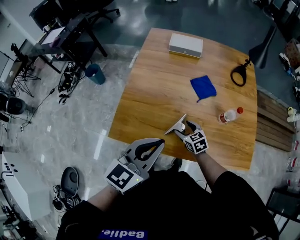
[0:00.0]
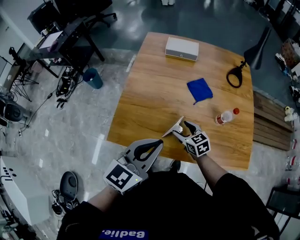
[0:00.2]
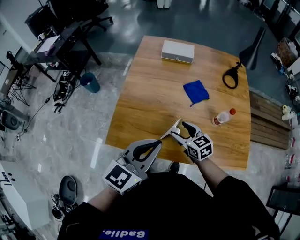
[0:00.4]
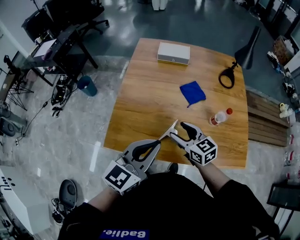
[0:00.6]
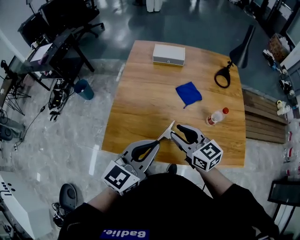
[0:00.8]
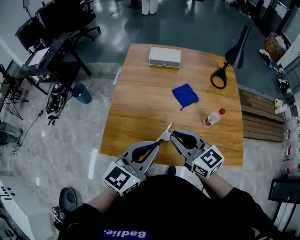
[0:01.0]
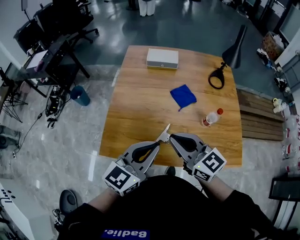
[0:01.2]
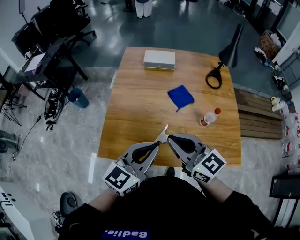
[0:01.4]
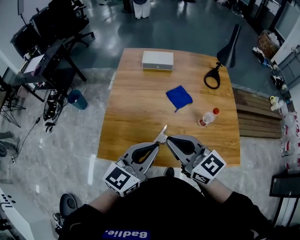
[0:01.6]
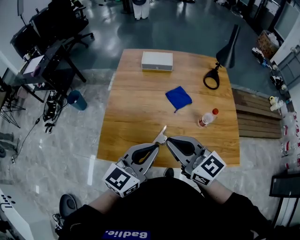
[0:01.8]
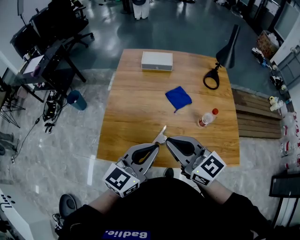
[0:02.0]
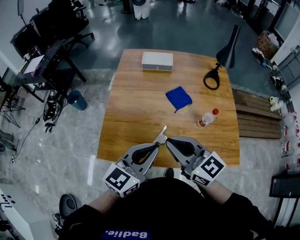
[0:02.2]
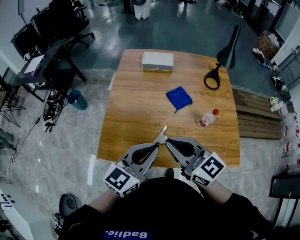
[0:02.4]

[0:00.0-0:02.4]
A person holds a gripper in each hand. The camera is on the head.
0:00.0 to 0:01.2: The right gripper shifts some 30 cm upward, points its fingers approximately 30 degrees further upward, and closes up.
0:01.2 to 0:02.4: The grippers move only a little.

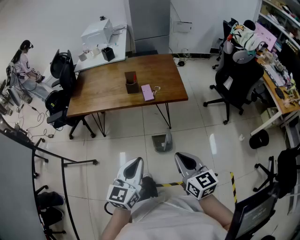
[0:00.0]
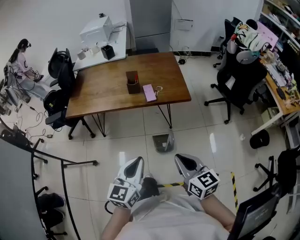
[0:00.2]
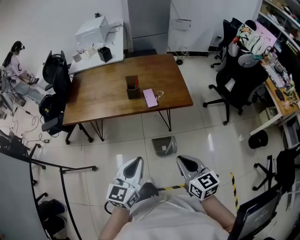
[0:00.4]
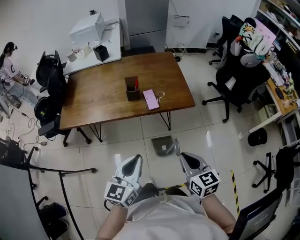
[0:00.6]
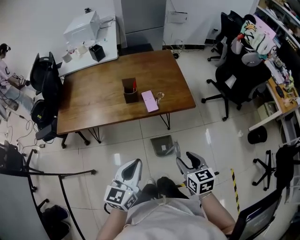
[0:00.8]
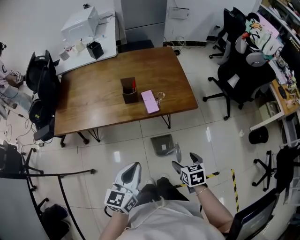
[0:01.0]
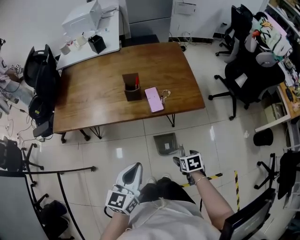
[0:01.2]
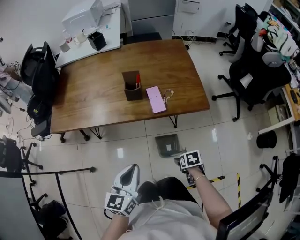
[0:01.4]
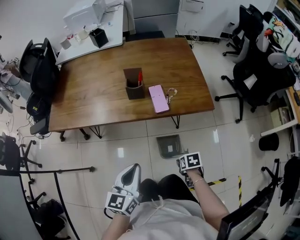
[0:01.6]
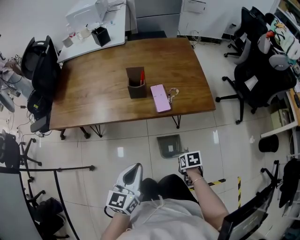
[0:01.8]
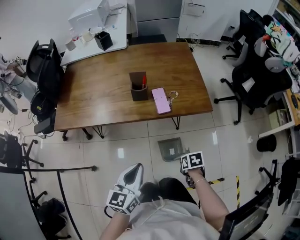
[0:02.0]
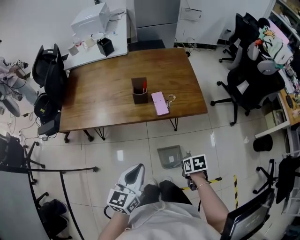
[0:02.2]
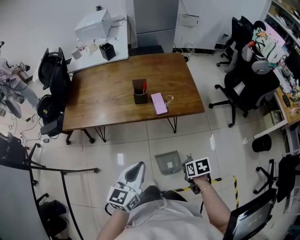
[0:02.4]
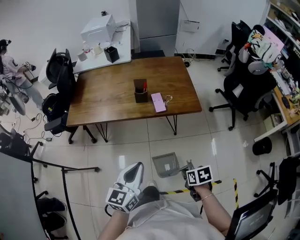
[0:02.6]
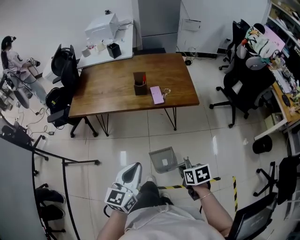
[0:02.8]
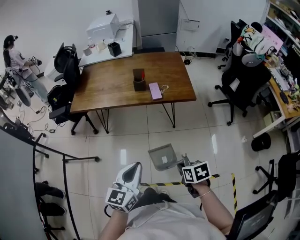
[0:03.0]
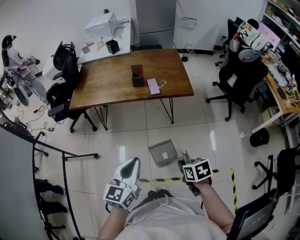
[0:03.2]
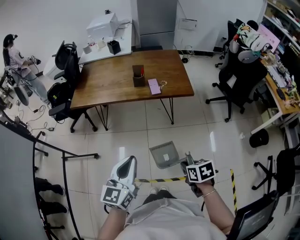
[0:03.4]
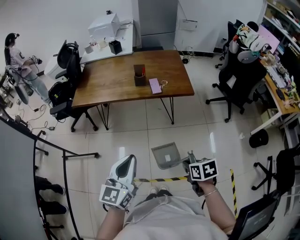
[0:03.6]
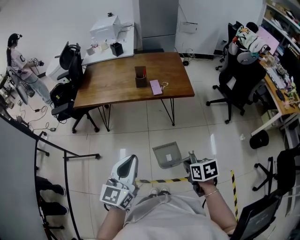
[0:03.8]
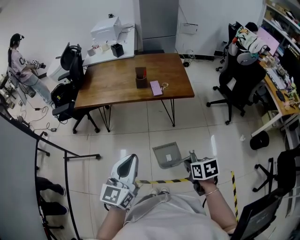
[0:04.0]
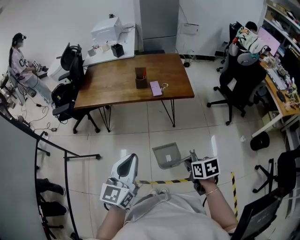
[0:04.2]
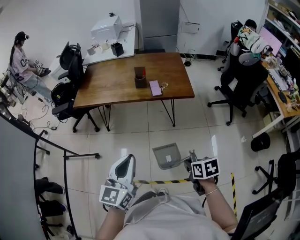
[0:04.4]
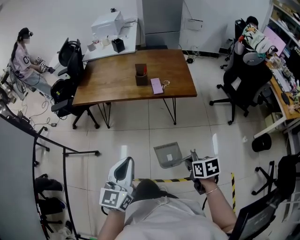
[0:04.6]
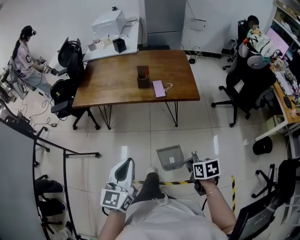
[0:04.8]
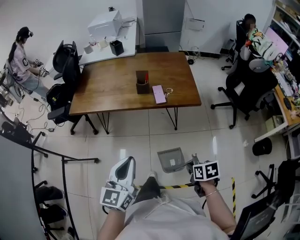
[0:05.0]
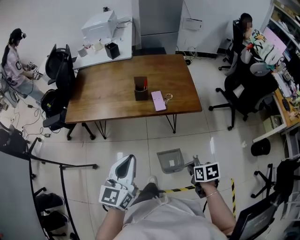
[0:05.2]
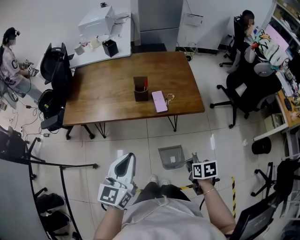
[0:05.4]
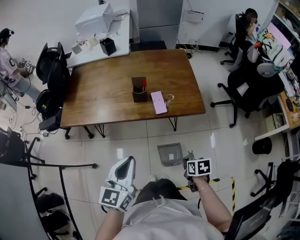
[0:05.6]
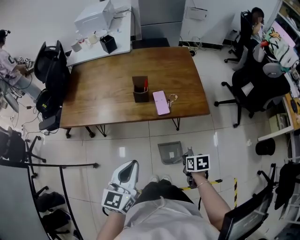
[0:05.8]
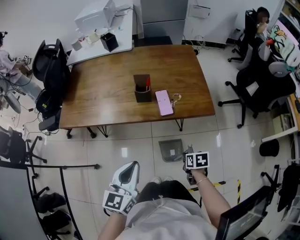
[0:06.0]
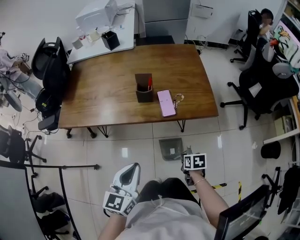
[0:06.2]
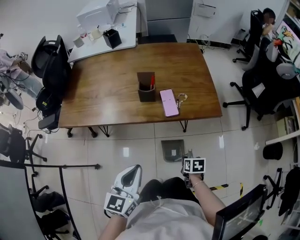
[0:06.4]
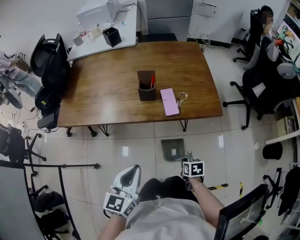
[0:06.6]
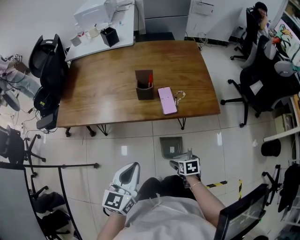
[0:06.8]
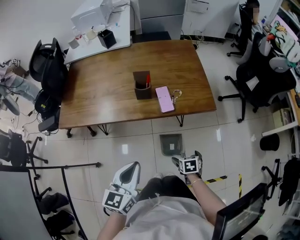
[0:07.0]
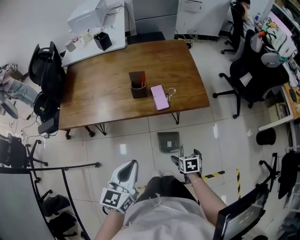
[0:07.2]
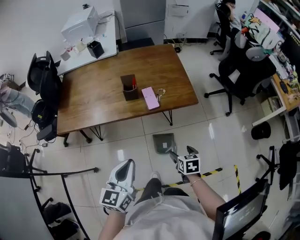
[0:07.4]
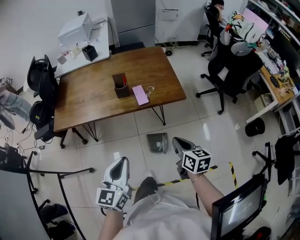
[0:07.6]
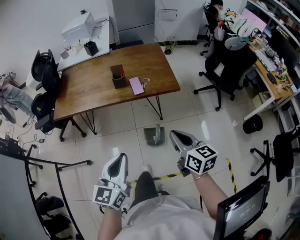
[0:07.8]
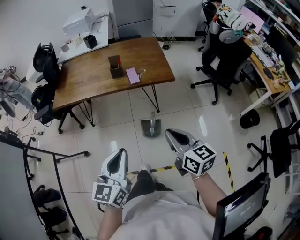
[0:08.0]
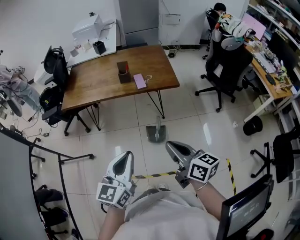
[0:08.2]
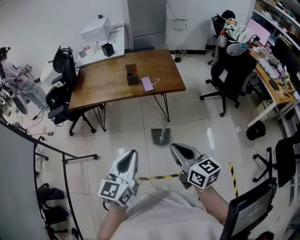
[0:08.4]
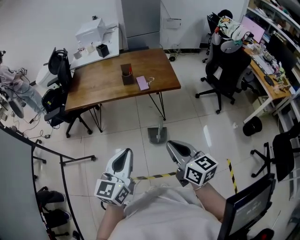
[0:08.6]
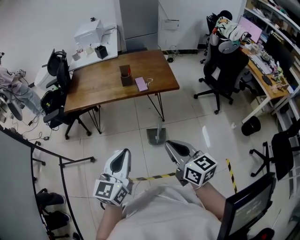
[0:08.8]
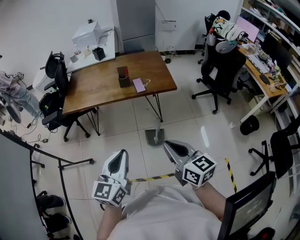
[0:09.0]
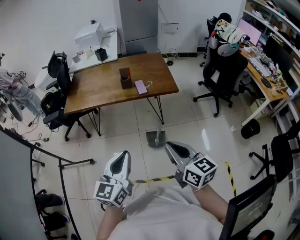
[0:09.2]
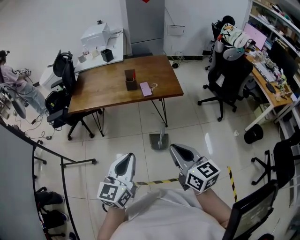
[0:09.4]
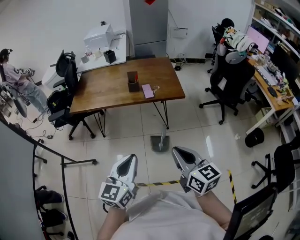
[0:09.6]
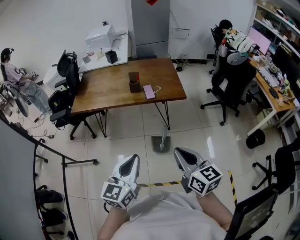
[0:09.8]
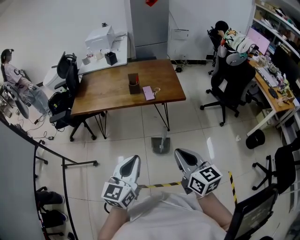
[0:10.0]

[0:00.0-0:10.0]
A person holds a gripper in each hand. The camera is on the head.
0:00.0 to 0:01.4: The right gripper shifts approximately 35 cm downward, tilts its fingers some 60 degrees downward, and opens its fingers. Meanwhile the left gripper moves roughly 25 cm.
0:01.4 to 0:02.8: The right gripper is displaced upward by about 20 cm, and closes its fingers; the left gripper moves about 20 cm.
0:02.8 to 0:04.2: Both grippers travel together backward and upward, roughly 10 cm.
0:04.2 to 0:05.8: The two grippers go some 30 cm forward and downward.
0:05.8 to 0:07.2: The right gripper opens its fingers, while the left gripper goes downward and returns, about 10 cm each way.
0:07.2 to 0:08.6: The right gripper moves upward and backward, about 40 cm, tilts its fingers about 50 degrees upward, and closes its fingers, while the left gripper goes approximately 30 cm backward and upward.
0:08.6 to 0:10.0: The grippers stay close to where they were, moving slightly.

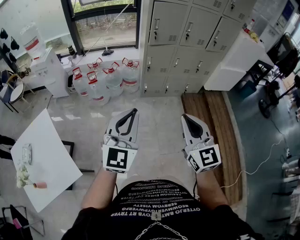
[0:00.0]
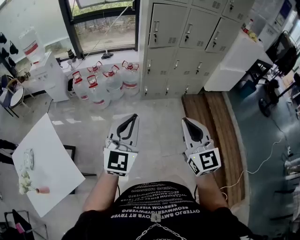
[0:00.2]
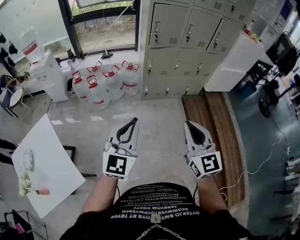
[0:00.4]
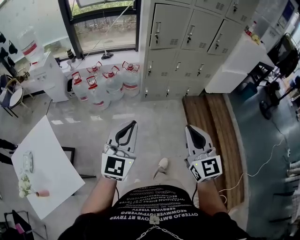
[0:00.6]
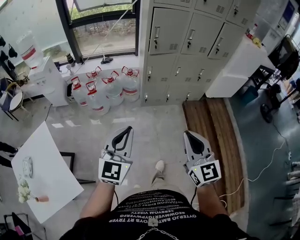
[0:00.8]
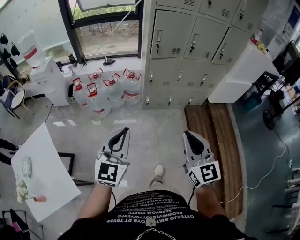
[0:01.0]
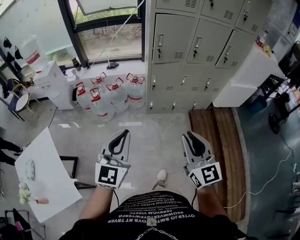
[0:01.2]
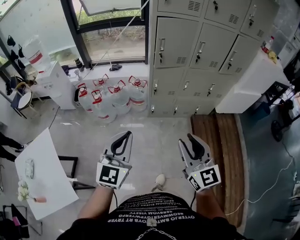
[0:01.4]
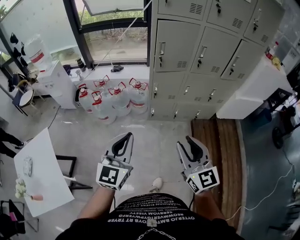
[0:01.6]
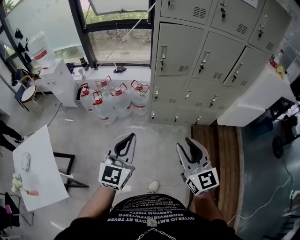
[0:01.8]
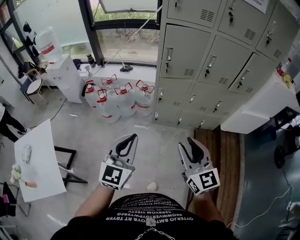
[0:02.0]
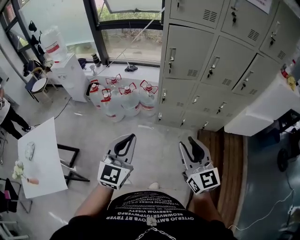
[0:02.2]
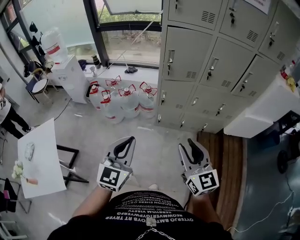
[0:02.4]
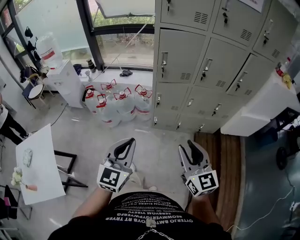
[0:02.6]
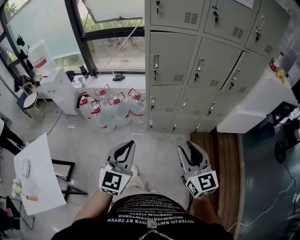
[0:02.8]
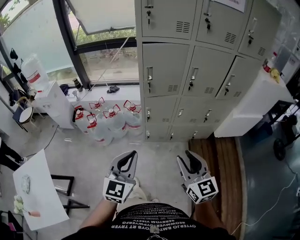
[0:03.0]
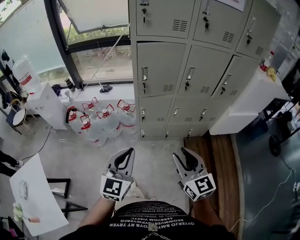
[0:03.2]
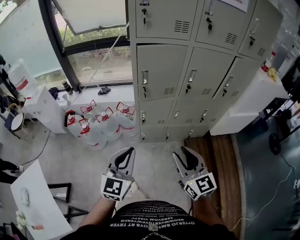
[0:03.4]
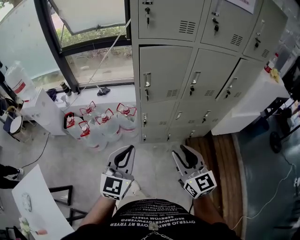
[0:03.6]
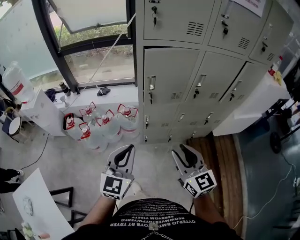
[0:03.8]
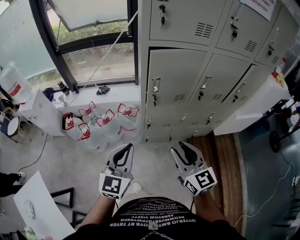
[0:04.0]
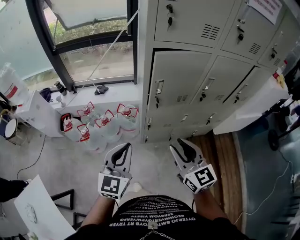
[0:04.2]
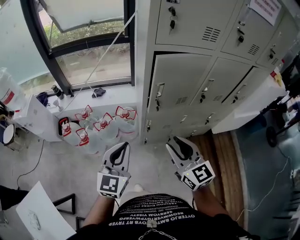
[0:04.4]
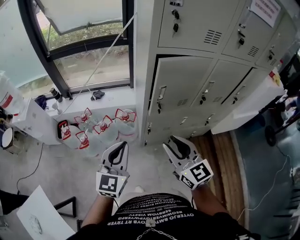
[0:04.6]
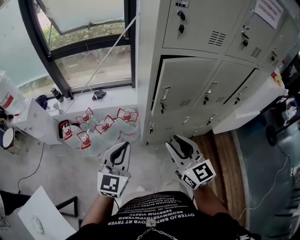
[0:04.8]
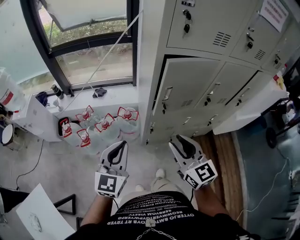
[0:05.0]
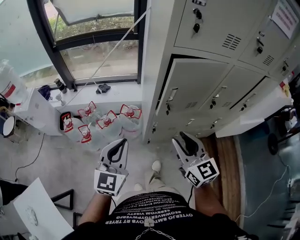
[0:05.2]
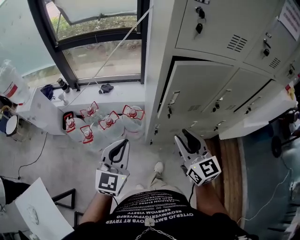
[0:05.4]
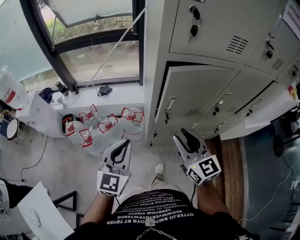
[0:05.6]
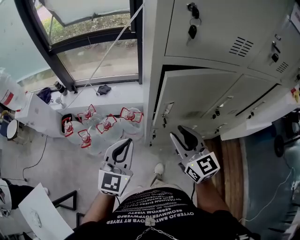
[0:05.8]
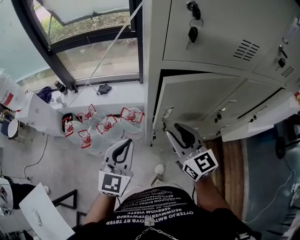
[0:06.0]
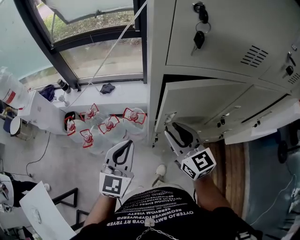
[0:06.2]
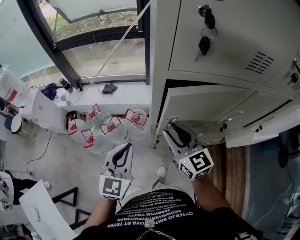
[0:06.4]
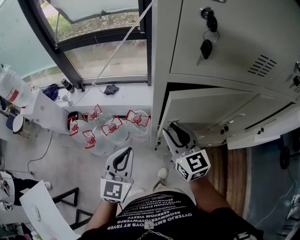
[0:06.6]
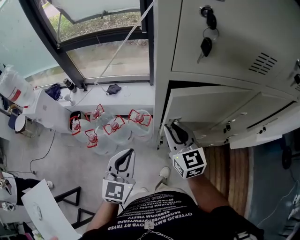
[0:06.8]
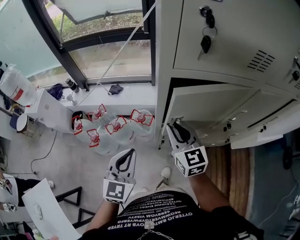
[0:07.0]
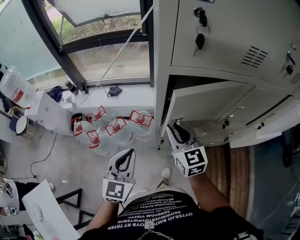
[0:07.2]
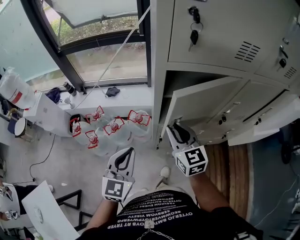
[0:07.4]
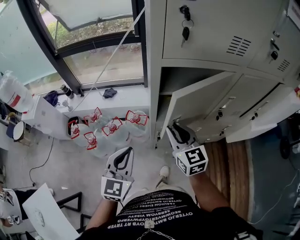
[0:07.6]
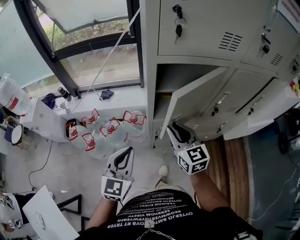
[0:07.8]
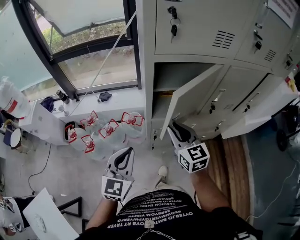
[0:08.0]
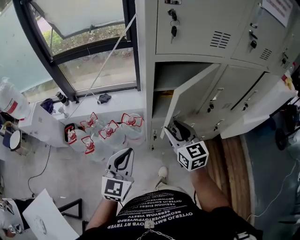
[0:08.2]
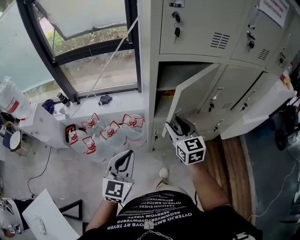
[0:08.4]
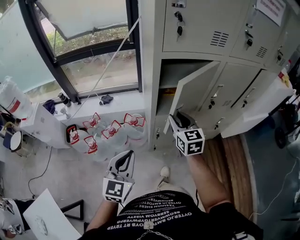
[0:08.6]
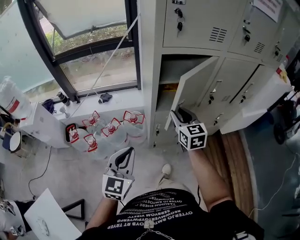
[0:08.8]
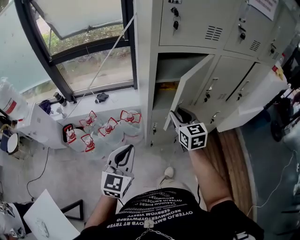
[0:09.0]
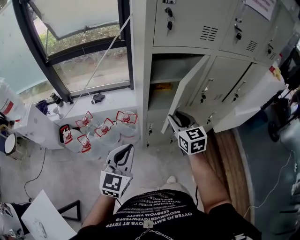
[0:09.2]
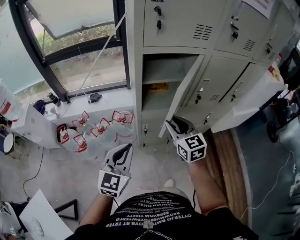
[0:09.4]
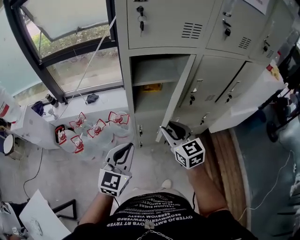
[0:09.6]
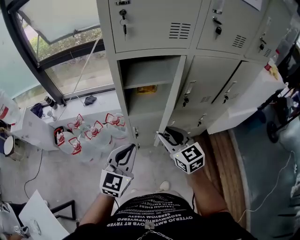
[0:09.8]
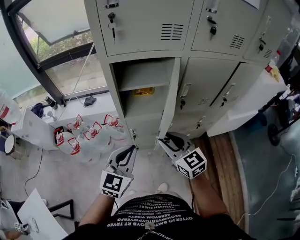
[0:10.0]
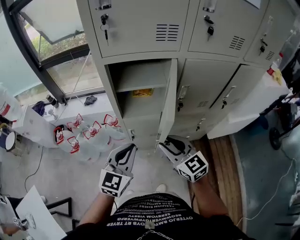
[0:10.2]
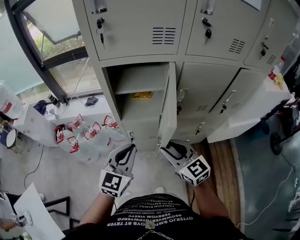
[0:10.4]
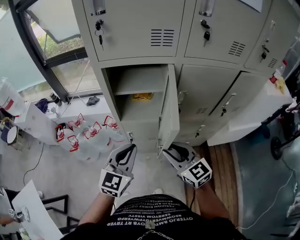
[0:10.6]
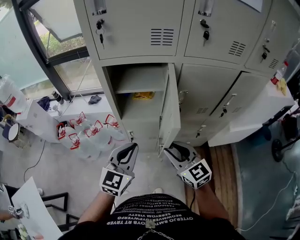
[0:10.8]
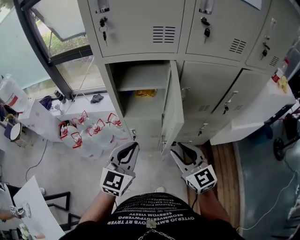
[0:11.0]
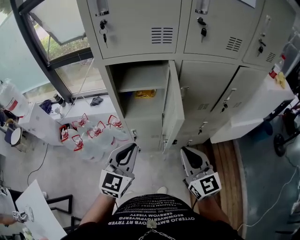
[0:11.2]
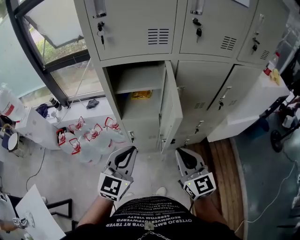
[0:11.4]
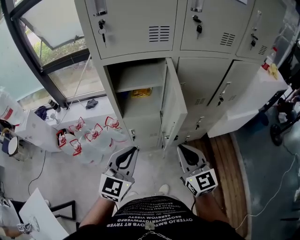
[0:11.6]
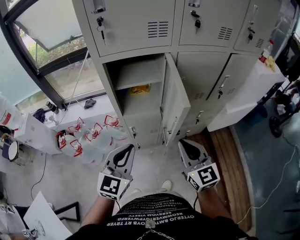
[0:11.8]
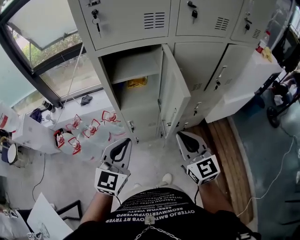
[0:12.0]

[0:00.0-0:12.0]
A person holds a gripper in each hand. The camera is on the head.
0:00.0 to 0:01.6: Both grippers move forward, approximately 20 cm. The right gripper opens its fingers.
0:01.6 to 0:03.0: The two grippers go about 15 cm to the right and forward.
0:03.0 to 0:04.4: Both grippers move forward and to the left, roughly 30 cm.
0:04.4 to 0:06.0: The two grippers go about 15 cm forward.
0:06.0 to 0:07.6: The left gripper ends up about 5 cm from where it was.
0:07.6 to 0:09.0: The left gripper goes about 10 cm backward.
0:09.0 to 0:10.4: The right gripper travels to the right and backward by roughly 20 cm, and swivels some 30 degrees, while the left gripper moves to the right, roughly 25 cm.
0:10.4 to 0:12.0: The right gripper is displaced backward by some 5 cm, rotates some 20 degrees, and closes its fingers. The left gripper shifts by approximately 5 cm.
